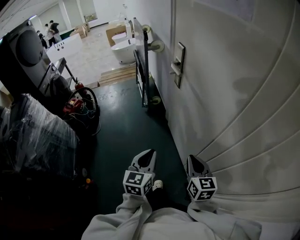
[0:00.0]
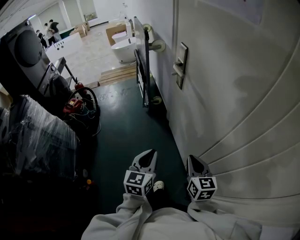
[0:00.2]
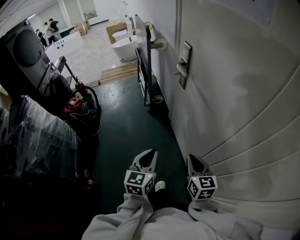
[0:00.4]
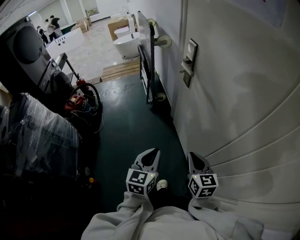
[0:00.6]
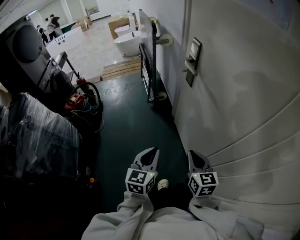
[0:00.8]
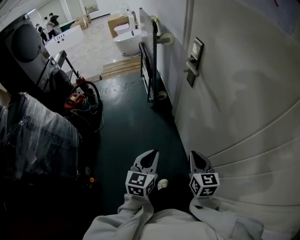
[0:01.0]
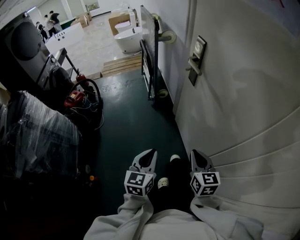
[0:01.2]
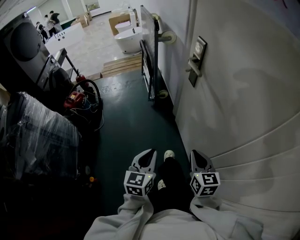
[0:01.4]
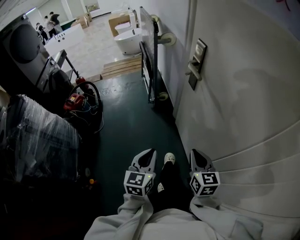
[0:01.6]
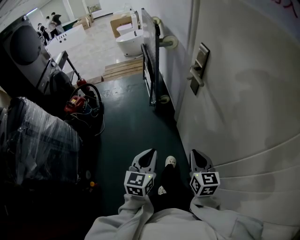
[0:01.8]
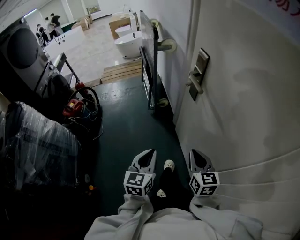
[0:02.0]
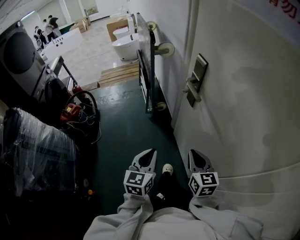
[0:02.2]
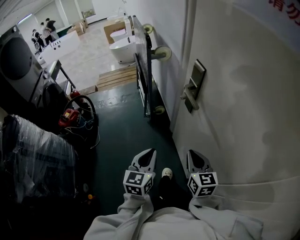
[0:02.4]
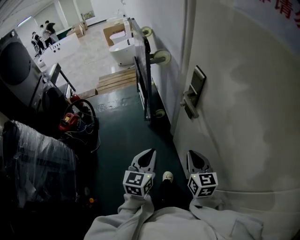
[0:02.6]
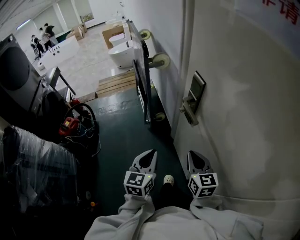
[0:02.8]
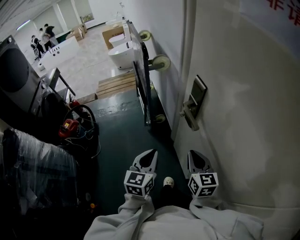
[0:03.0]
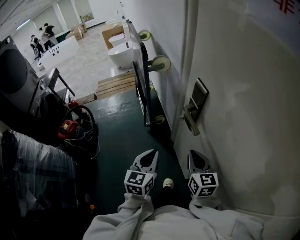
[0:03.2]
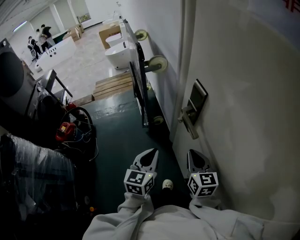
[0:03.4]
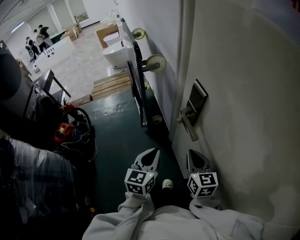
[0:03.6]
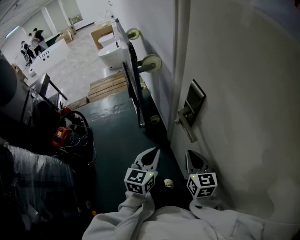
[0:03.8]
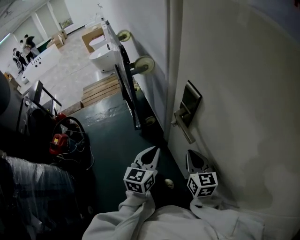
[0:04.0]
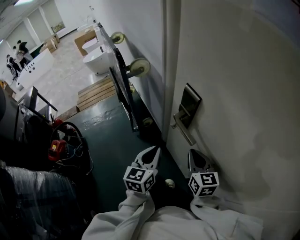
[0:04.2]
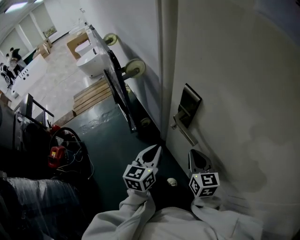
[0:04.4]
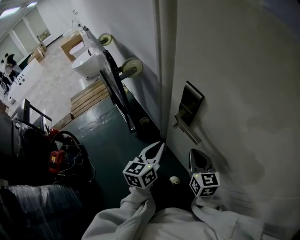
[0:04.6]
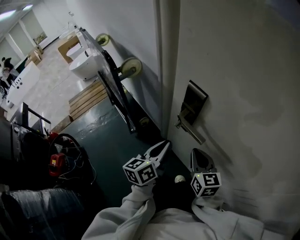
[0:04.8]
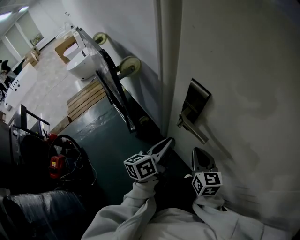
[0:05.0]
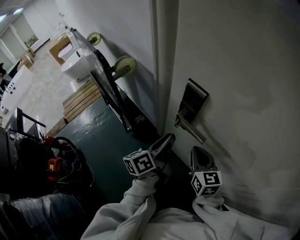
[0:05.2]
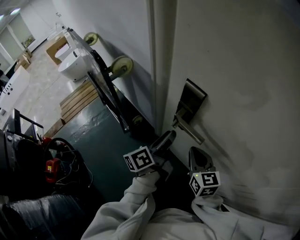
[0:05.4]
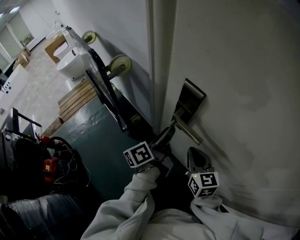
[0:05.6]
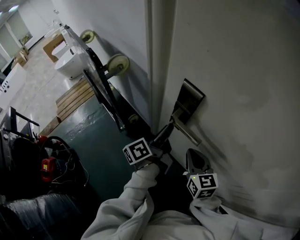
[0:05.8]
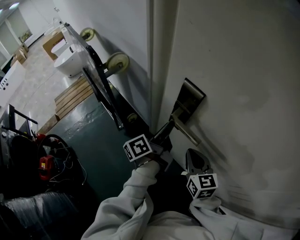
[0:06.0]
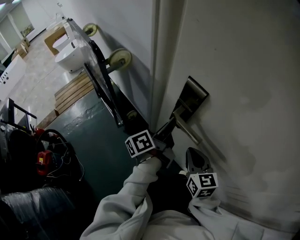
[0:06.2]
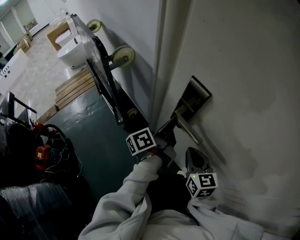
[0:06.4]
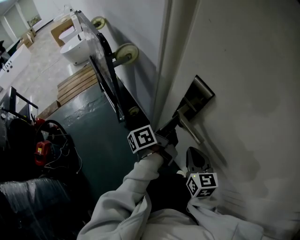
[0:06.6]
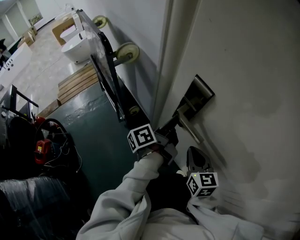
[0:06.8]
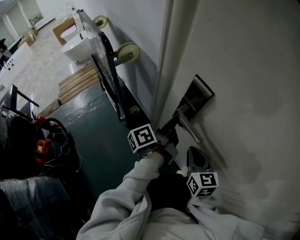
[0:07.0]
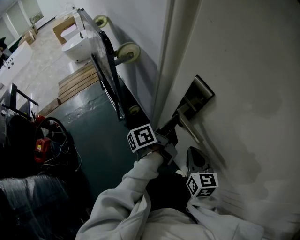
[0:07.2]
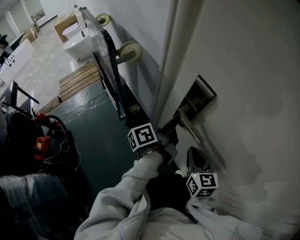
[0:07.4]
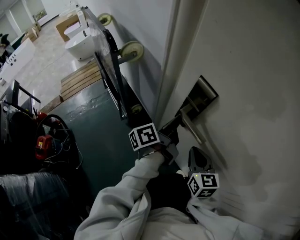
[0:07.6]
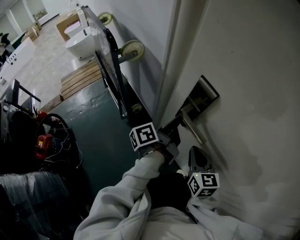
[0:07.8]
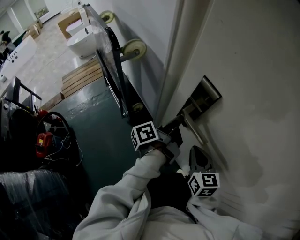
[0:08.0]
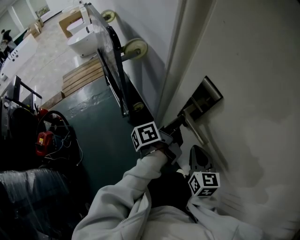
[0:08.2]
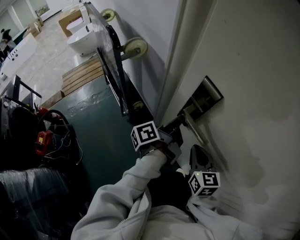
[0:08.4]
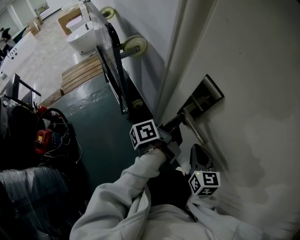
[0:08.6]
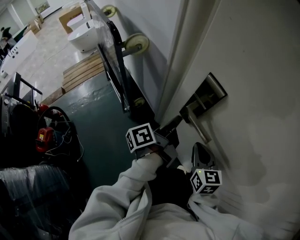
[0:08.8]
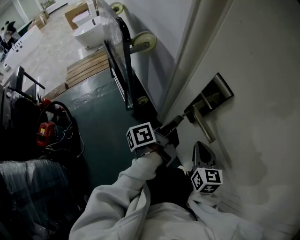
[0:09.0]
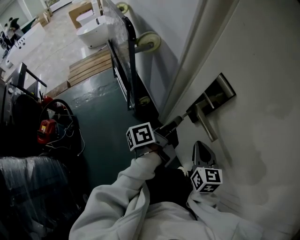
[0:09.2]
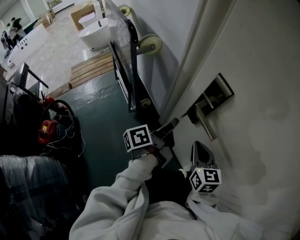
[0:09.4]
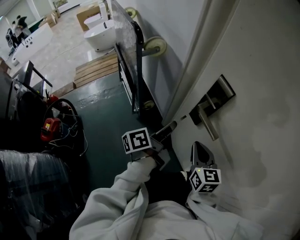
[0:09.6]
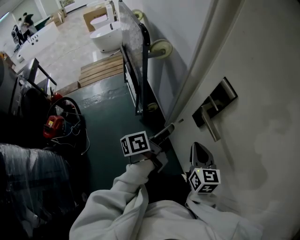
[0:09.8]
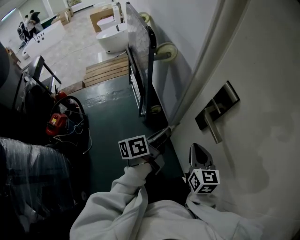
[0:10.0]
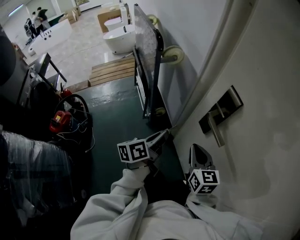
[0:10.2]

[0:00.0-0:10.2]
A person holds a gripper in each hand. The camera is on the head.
0.0 to 1.4 s: The right gripper is displaced forward and to the left by some 10 cm; the left gripper goes roughly 10 cm to the left and forward.
1.4 to 3.0 s: The grippers both shift forward by roughly 25 cm.
3.0 to 4.4 s: The left gripper travels forward by roughly 10 cm, and rotates some 20 degrees. The right gripper moves forward, approximately 5 cm.
4.4 to 5.8 s: The left gripper shifts approximately 10 cm forward, rotates around the line of its fingers by some 50 degrees, counterclockwise from behind, and opens.
5.8 to 7.2 s: The left gripper closes its fingers.
7.2 to 8.8 s: The grippers stay close to where they were, moving slightly.
8.8 to 10.2 s: The right gripper is displaced to the left by roughly 10 cm, while the left gripper travels to the left and backward by about 15 cm, and swivels some 30 degrees.

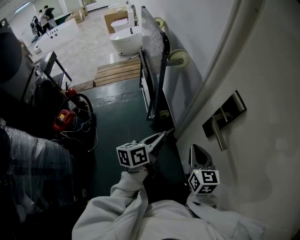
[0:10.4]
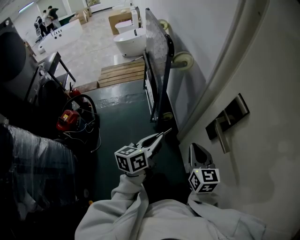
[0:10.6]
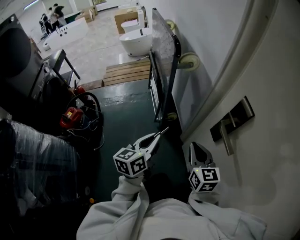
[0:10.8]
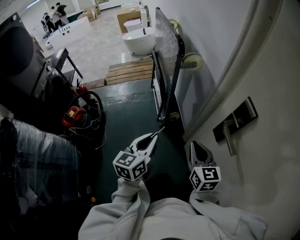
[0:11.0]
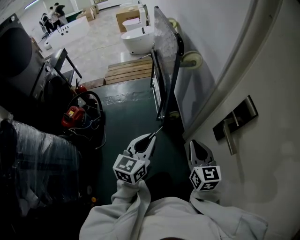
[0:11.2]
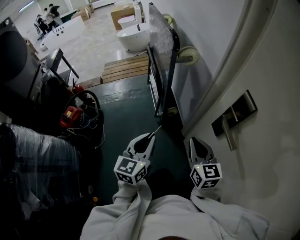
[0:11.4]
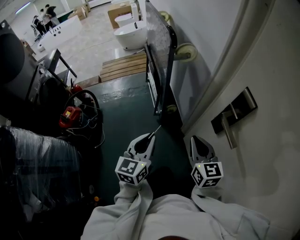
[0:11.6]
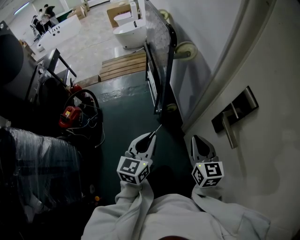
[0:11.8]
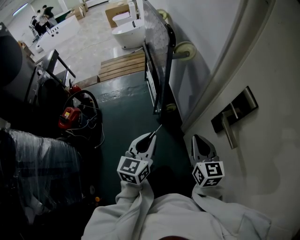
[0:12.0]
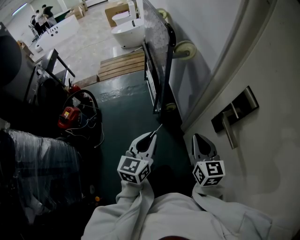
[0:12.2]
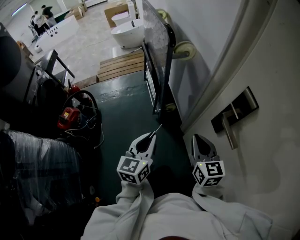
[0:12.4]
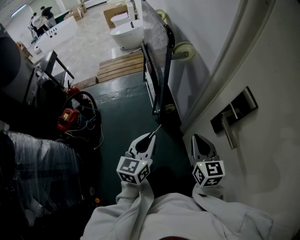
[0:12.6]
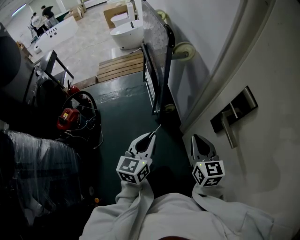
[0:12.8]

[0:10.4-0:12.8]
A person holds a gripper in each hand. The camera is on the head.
10.4 to 11.6 s: The left gripper is displaced to the left by approximately 5 cm, and swivels some 40 degrees.
11.6 to 12.8 s: Both grippers stay put.

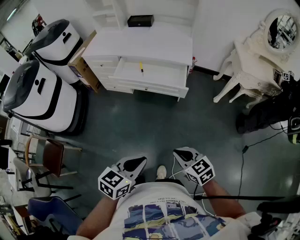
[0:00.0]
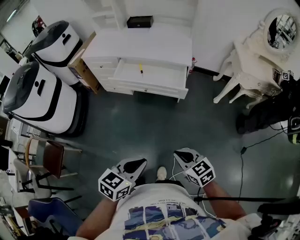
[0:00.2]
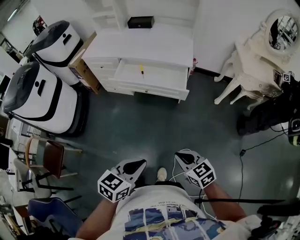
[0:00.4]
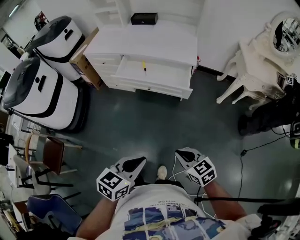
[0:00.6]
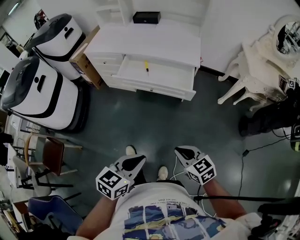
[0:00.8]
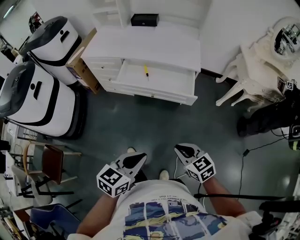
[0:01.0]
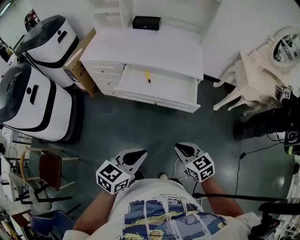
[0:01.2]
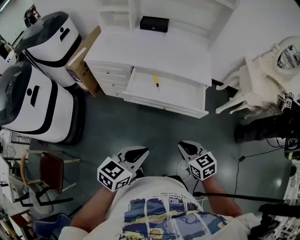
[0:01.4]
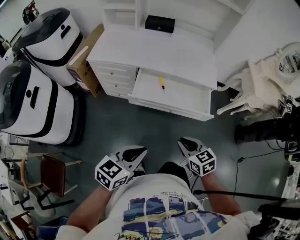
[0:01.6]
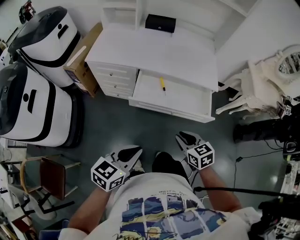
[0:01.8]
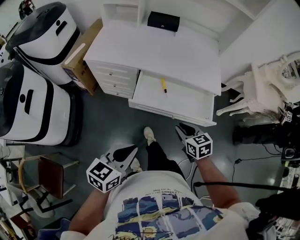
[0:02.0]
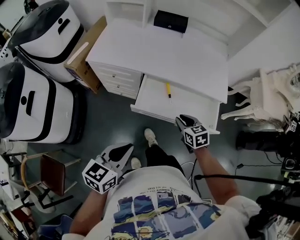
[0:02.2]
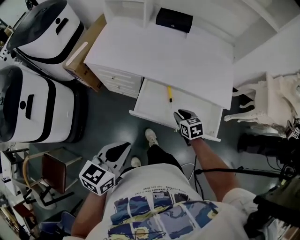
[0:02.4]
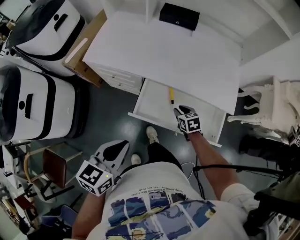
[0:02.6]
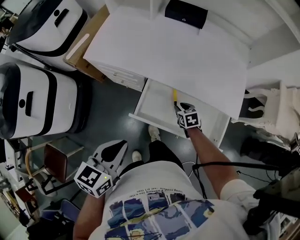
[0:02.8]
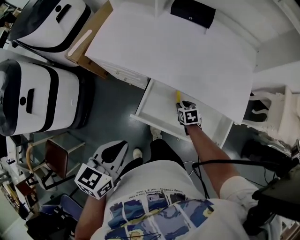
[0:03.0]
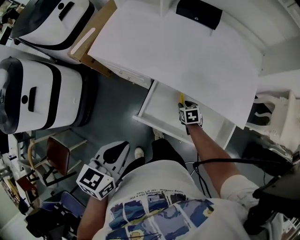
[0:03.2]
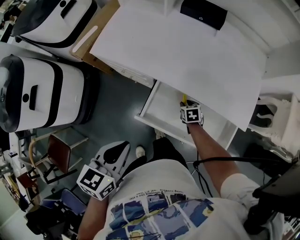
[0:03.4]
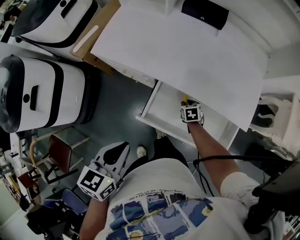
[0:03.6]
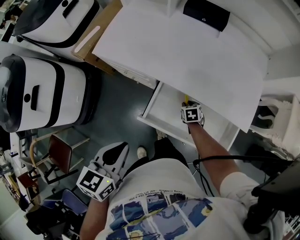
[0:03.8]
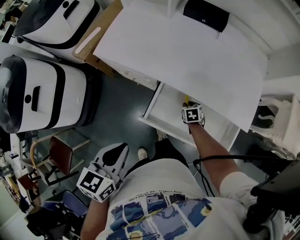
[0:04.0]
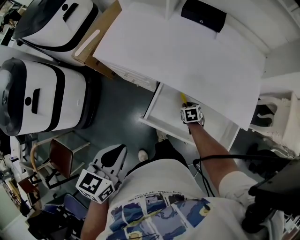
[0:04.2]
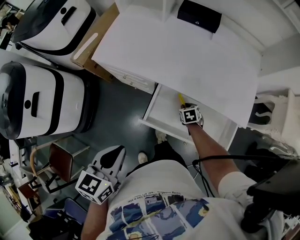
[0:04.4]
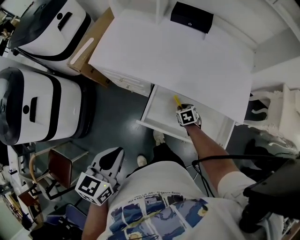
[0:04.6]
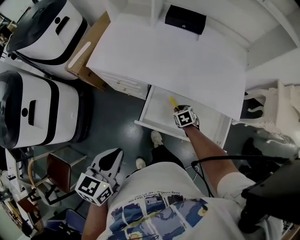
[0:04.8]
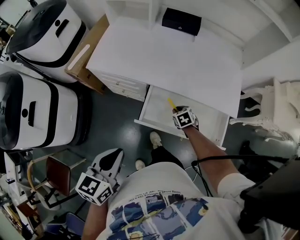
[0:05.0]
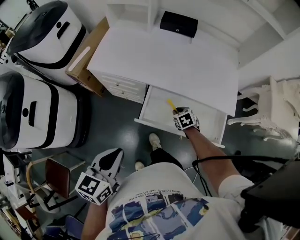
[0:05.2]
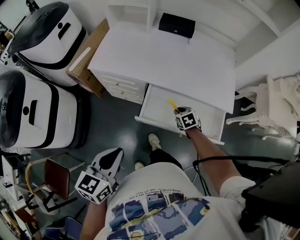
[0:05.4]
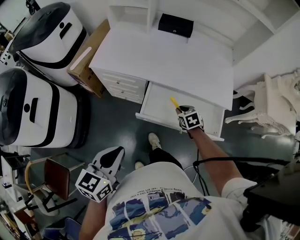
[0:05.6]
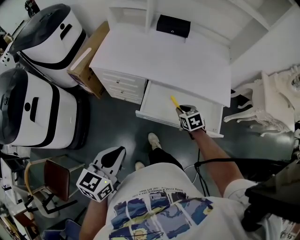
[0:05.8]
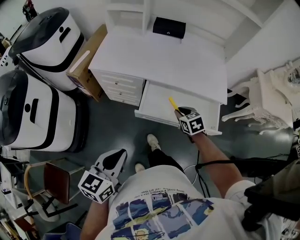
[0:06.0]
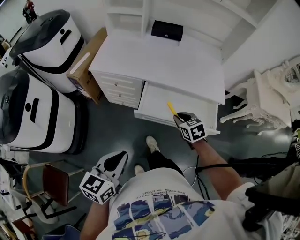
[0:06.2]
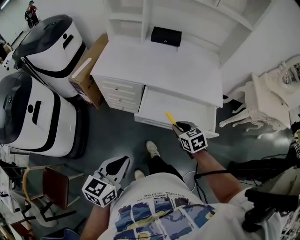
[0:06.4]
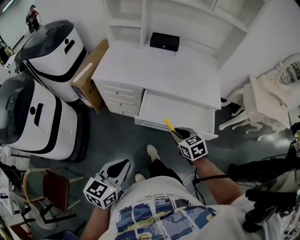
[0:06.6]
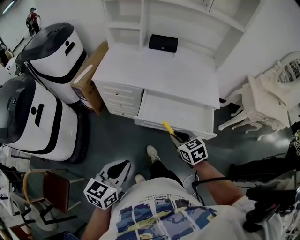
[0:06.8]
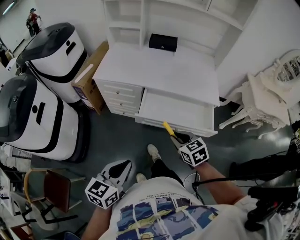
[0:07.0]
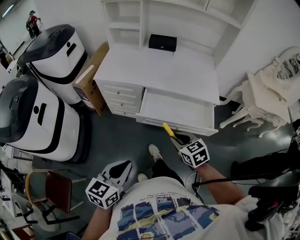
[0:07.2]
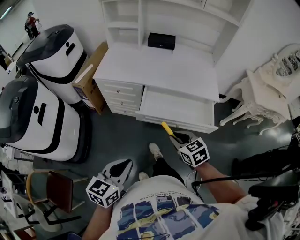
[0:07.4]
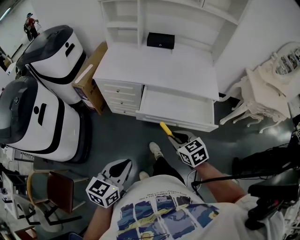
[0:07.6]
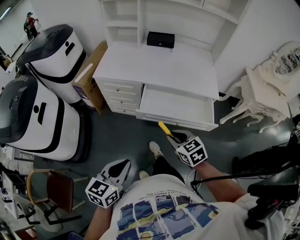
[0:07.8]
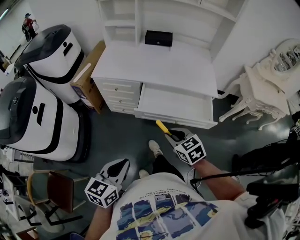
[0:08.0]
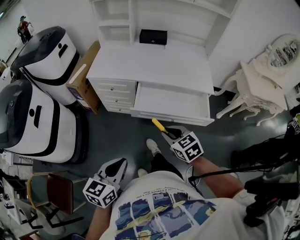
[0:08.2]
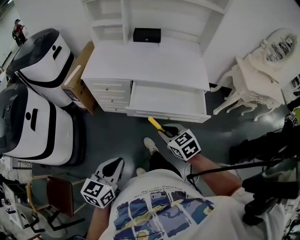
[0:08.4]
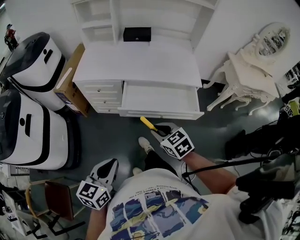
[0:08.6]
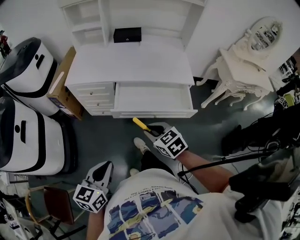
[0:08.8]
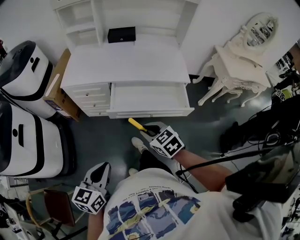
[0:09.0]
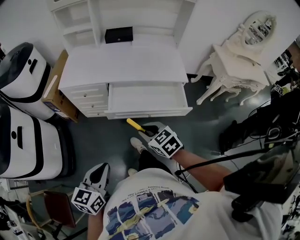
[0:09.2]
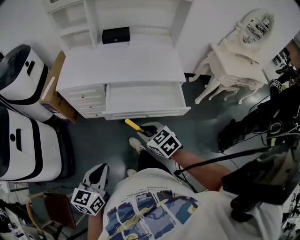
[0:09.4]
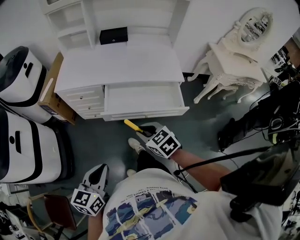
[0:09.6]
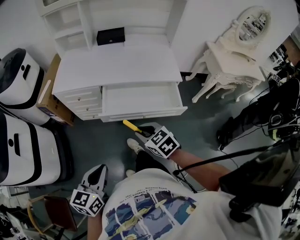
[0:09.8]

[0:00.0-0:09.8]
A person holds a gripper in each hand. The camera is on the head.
0.0 to 1.4 s: The grippers both shift forward and to the left by approximately 25 cm.
1.4 to 2.8 s: The right gripper goes roughly 50 cm forward and downward, swivels about 20 degrees, and opens up, while the left gripper moves forward and to the left, approximately 30 cm, and changes its angle by approximately 30 degrees.
2.8 to 4.2 s: The right gripper moves downward, roughly 5 cm.
4.2 to 5.6 s: The right gripper goes about 15 cm upward and backward; the left gripper goes some 10 cm backward.
5.6 to 7.0 s: The right gripper shifts roughly 25 cm backward and upward. Meanwhile the left gripper is displaced backward by some 10 cm.
7.0 to 9.8 s: The grippers stay close to where they were, moving slightly.

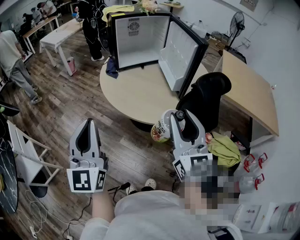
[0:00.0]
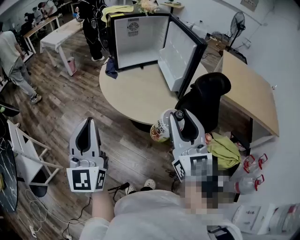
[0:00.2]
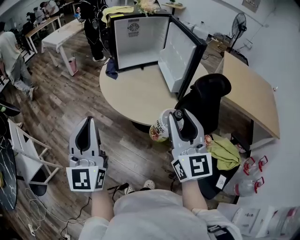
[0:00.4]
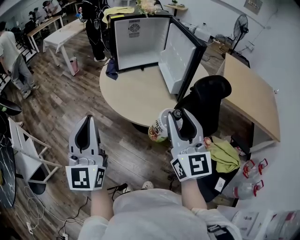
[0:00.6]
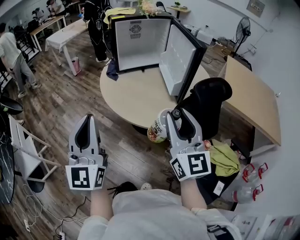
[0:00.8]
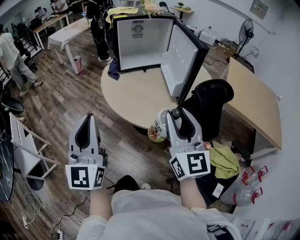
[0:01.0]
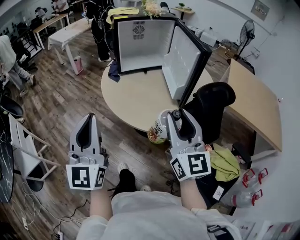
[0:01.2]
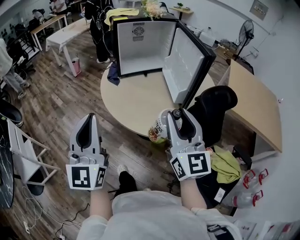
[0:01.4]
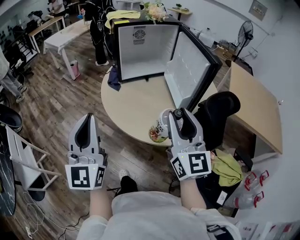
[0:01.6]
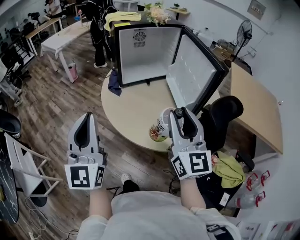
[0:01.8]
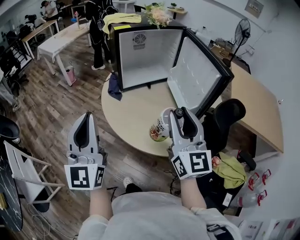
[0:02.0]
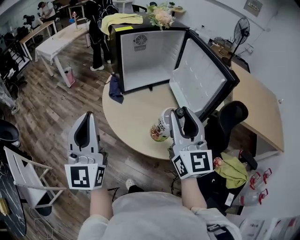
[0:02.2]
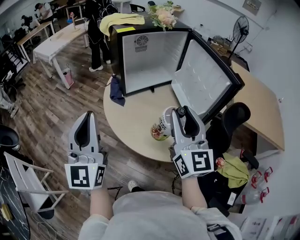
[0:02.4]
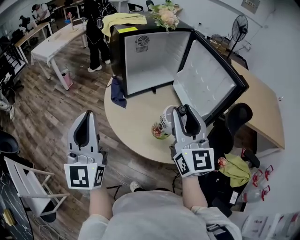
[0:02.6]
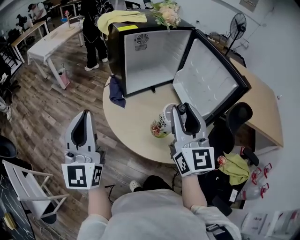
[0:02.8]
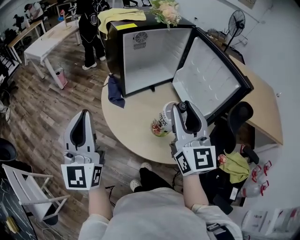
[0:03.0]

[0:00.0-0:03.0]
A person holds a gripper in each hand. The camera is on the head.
0.0 to 1.6 s: The two grippers go roughly 10 cm forward.
1.6 to 3.0 s: The two grippers go about 20 cm forward and to the left.
